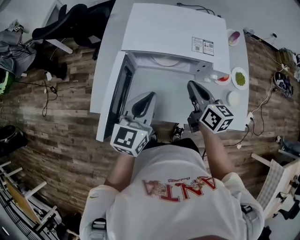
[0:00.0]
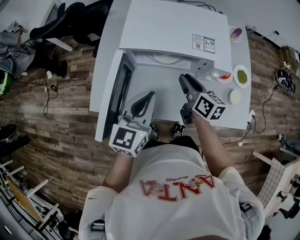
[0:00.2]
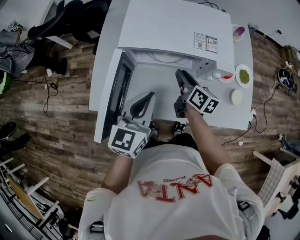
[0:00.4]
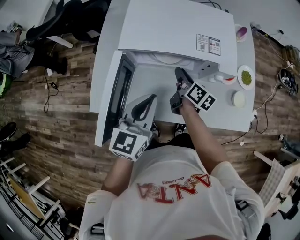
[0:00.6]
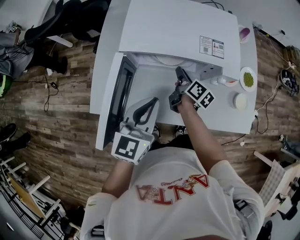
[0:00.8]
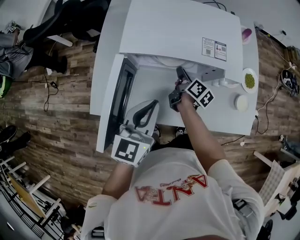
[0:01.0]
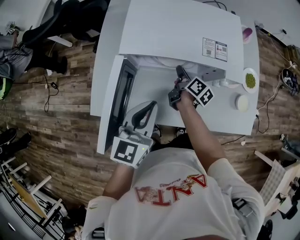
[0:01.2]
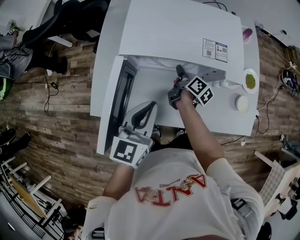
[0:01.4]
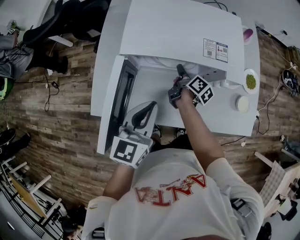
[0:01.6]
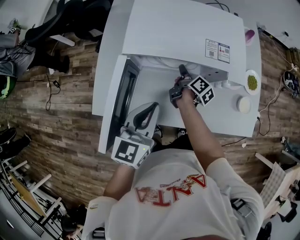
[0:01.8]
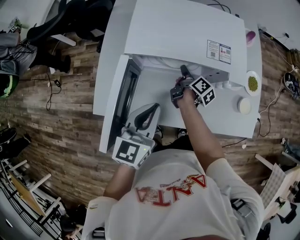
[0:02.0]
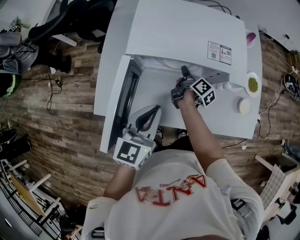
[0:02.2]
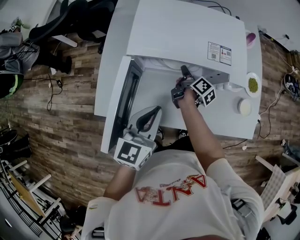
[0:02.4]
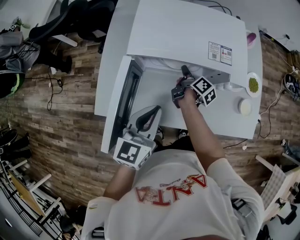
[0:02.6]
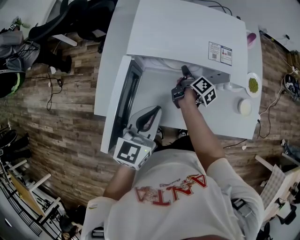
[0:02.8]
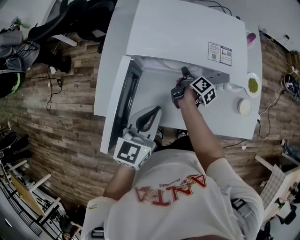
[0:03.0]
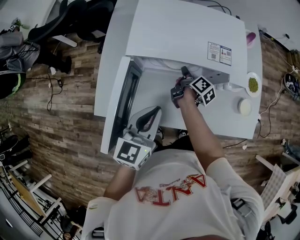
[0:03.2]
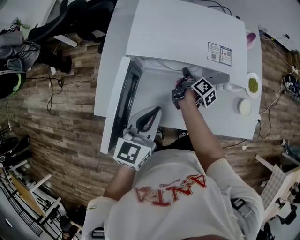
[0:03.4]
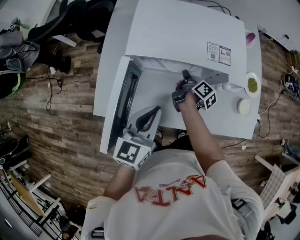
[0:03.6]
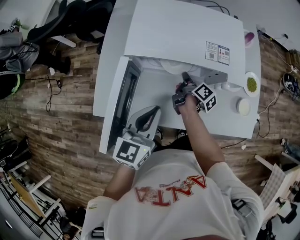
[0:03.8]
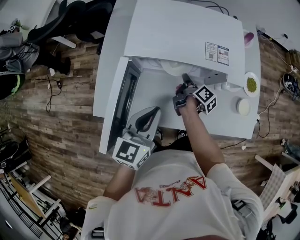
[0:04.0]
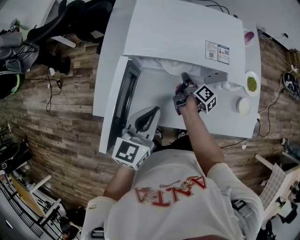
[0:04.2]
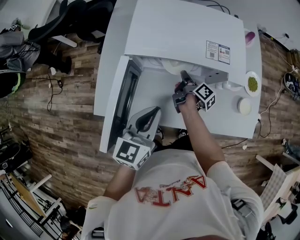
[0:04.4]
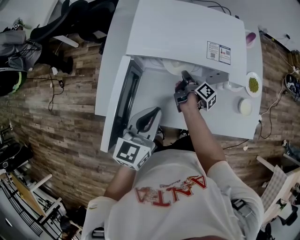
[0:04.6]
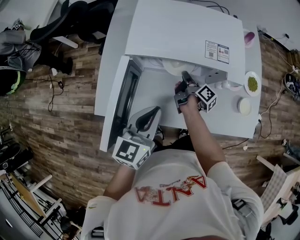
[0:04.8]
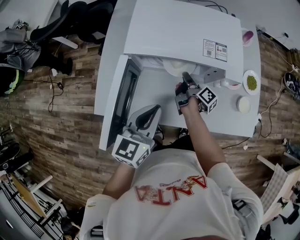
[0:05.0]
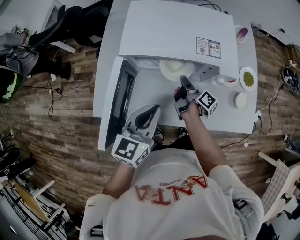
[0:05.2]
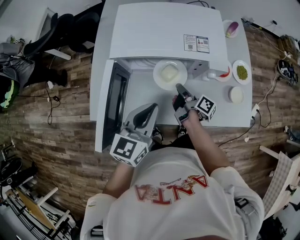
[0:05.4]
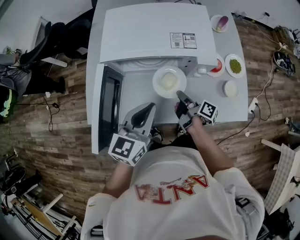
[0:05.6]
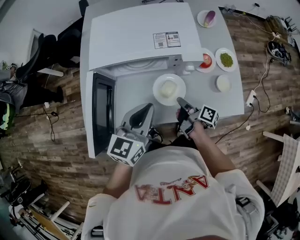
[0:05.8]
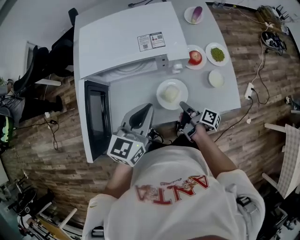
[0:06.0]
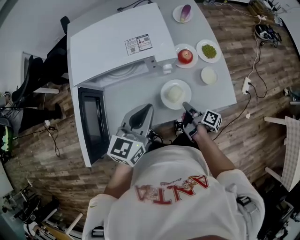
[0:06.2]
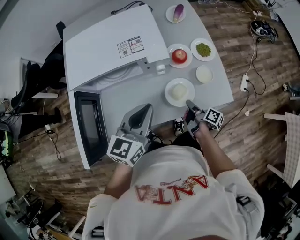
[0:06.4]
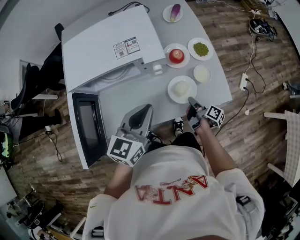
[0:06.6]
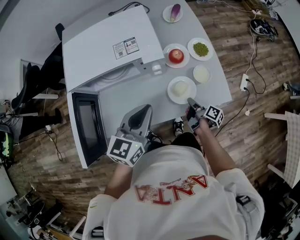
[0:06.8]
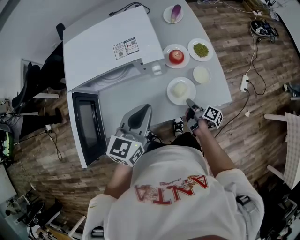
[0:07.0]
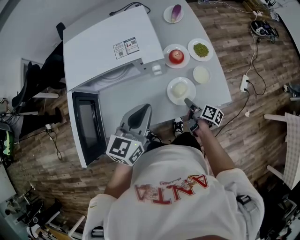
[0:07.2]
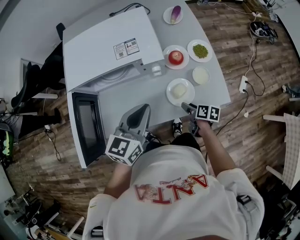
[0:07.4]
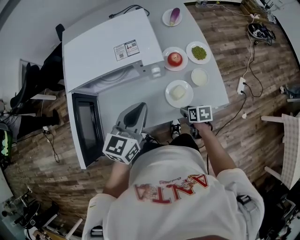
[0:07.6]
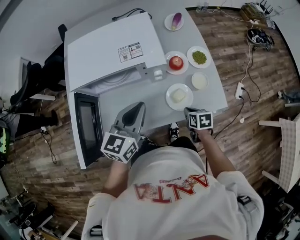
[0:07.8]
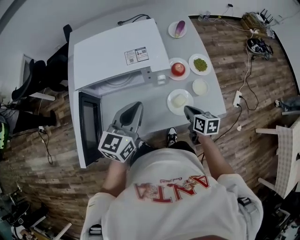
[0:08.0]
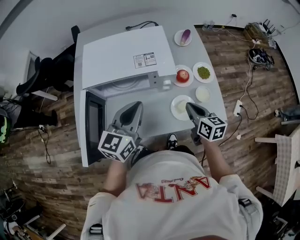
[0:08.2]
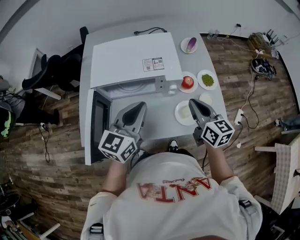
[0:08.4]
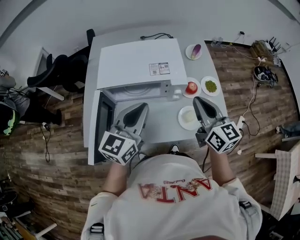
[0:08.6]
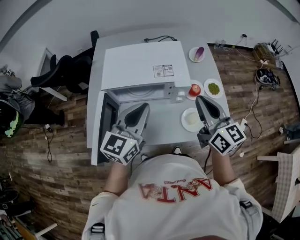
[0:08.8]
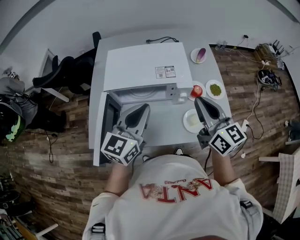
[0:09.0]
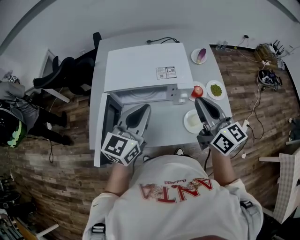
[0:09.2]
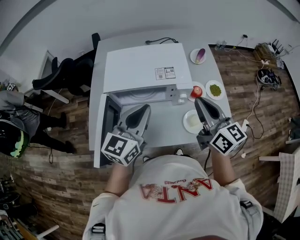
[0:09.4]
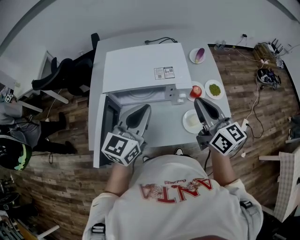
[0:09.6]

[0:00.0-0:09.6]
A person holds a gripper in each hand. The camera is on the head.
0:00.0 to 0:01.6: The right gripper heads downward and forward, covering approximately 20 cm, twists about 40 degrees clockwise, seen from behind, and opens its fingers.
0:01.6 to 0:04.8: The grippers stay close to where they were, moving slightly.
0:04.8 to 0:06.4: The left gripper heads to the right, covering some 20 cm, and rotates some 20 degrees, while the right gripper travels to the right and backward by about 30 cm.
0:06.4 to 0:08.0: The right gripper moves upward, some 10 cm, rolls counterclockwise, seen from behind, by some 50 degrees, and opens, then closes again.
0:08.0 to 0:09.6: The right gripper shifts roughly 30 cm upward, and angles its fingers upward, by about 40 degrees, while the left gripper is displaced upward and to the left by roughly 10 cm.

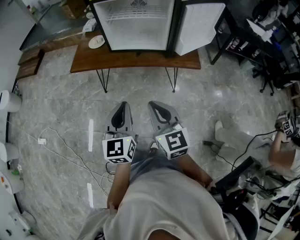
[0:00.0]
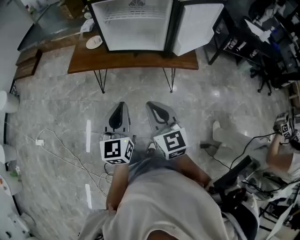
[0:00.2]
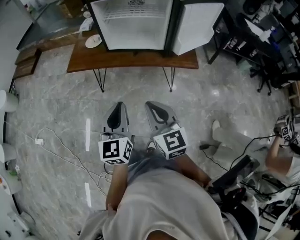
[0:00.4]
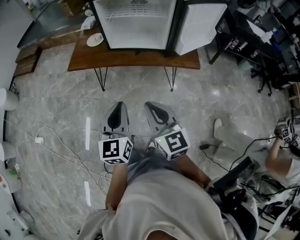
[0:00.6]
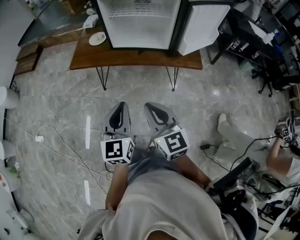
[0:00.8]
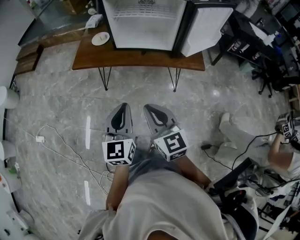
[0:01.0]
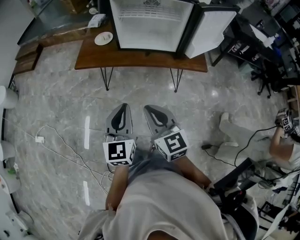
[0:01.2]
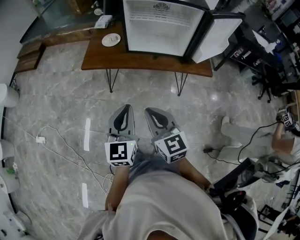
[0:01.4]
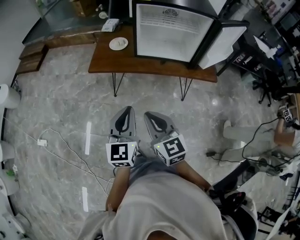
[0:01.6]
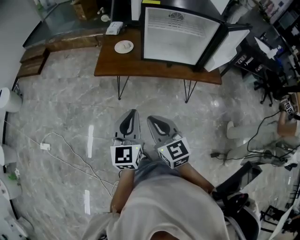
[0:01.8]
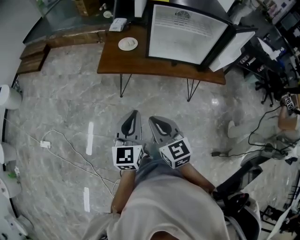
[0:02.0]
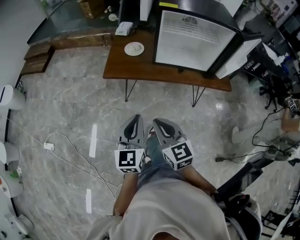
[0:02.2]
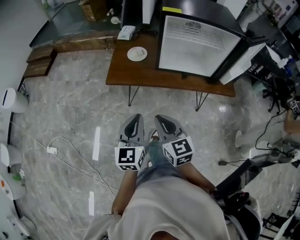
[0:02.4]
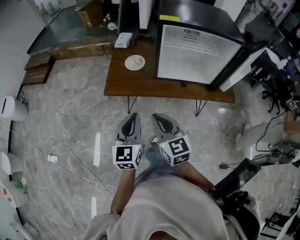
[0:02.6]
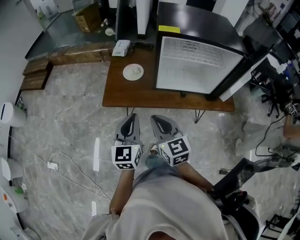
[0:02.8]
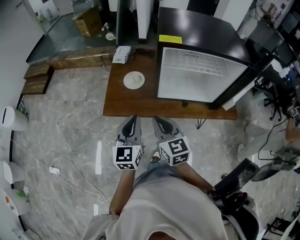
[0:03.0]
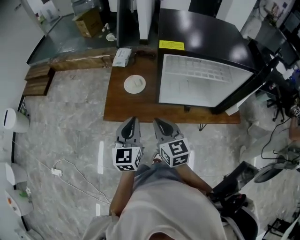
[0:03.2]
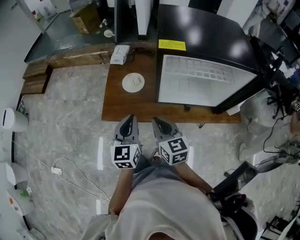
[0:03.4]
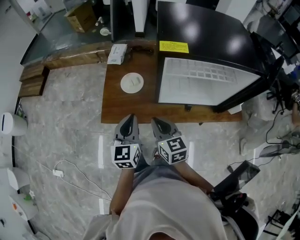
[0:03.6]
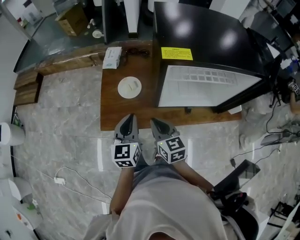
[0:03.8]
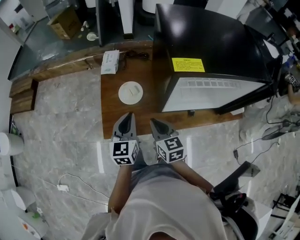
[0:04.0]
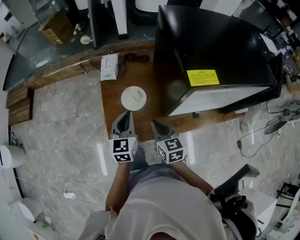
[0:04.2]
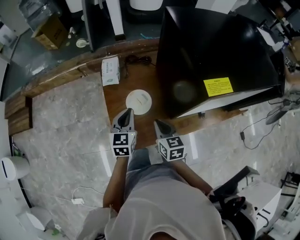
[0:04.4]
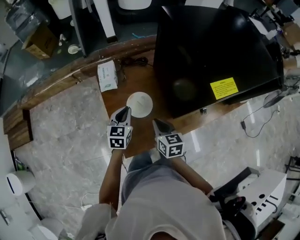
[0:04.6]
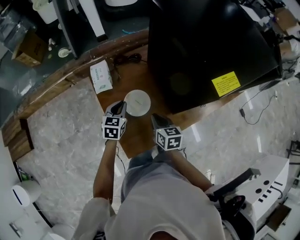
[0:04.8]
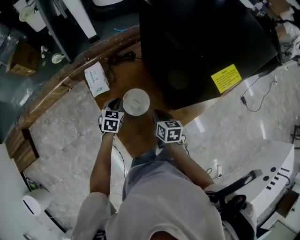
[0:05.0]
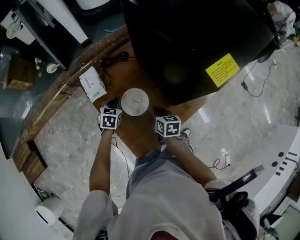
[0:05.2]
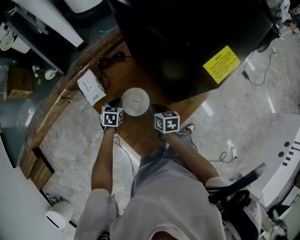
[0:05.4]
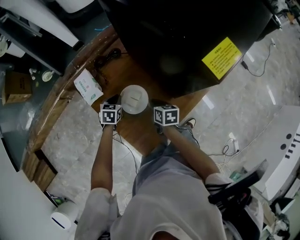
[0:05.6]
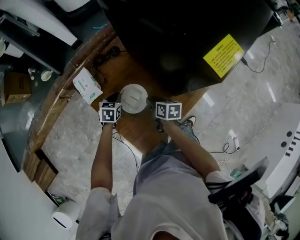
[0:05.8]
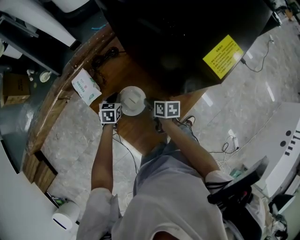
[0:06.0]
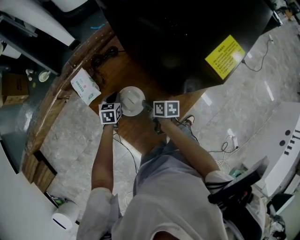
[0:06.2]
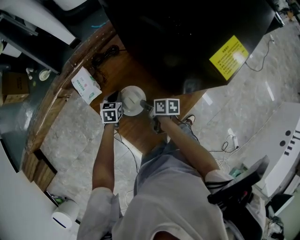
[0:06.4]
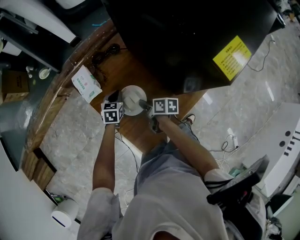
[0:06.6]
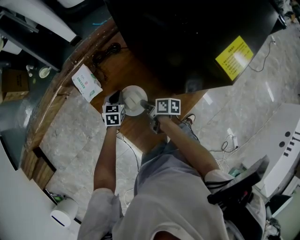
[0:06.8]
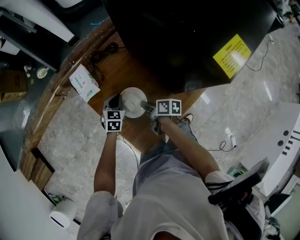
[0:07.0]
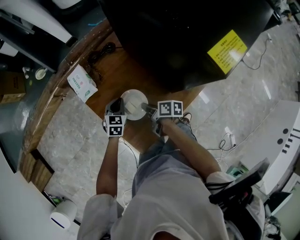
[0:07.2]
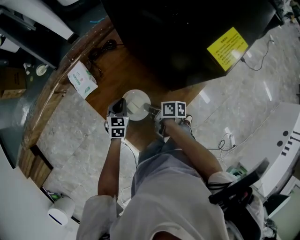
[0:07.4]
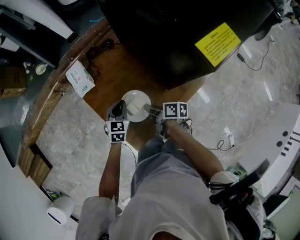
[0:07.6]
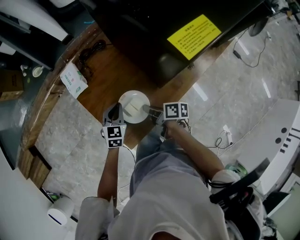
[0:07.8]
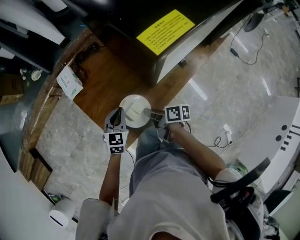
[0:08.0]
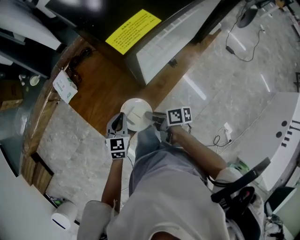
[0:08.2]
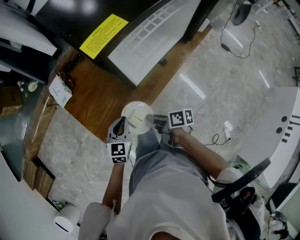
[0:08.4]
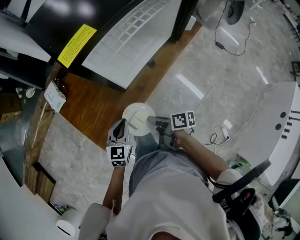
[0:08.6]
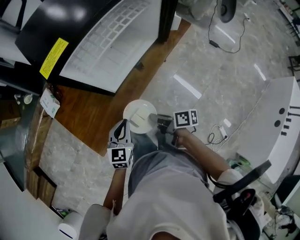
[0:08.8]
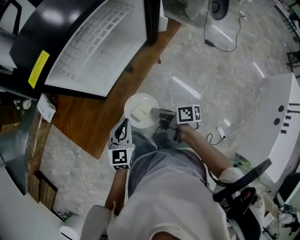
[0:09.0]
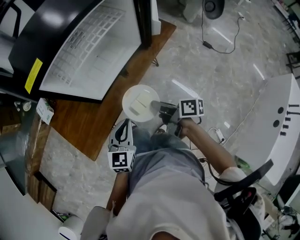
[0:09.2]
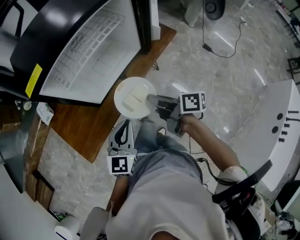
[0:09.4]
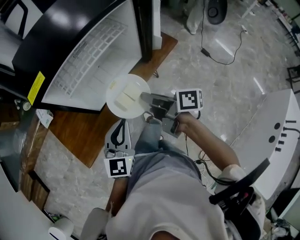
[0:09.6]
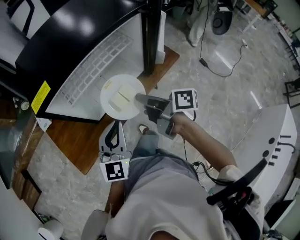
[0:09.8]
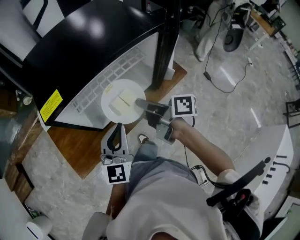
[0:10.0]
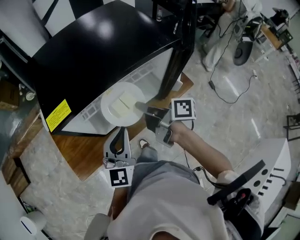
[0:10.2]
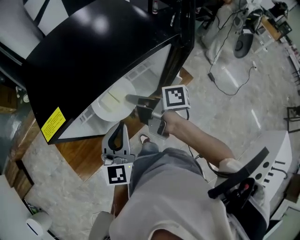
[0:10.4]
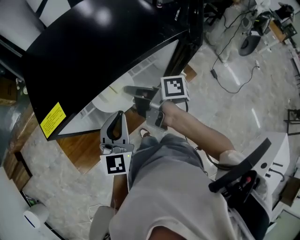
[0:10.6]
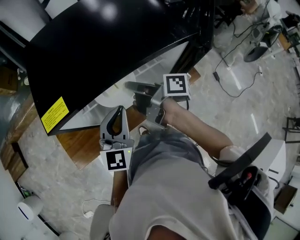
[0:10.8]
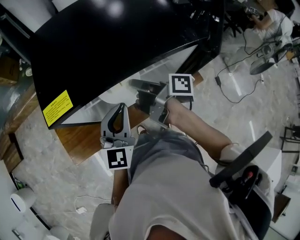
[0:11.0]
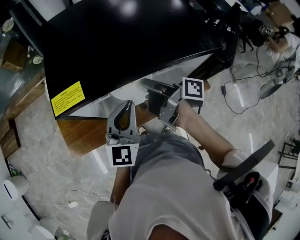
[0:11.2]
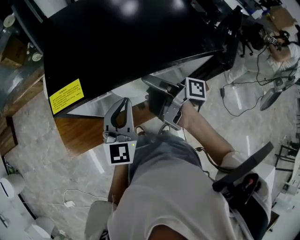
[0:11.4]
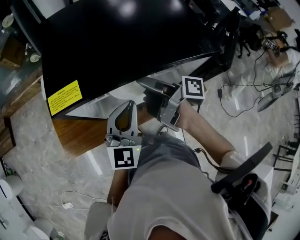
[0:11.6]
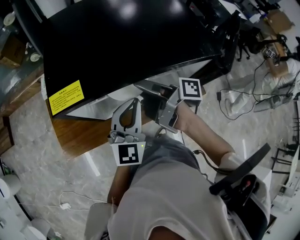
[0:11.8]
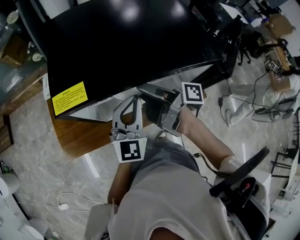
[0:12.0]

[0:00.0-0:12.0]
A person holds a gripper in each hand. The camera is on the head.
0:00.0 to 0:01.6: Both grippers travel together to the left, roughly 30 cm.
0:01.6 to 0:03.0: The pair of grippers is taken forward, about 40 cm.
0:03.0 to 0:04.4: The pair of grippers is taken forward, approximately 50 cm. The left gripper turns by some 30 degrees. Meanwhile the right gripper swivels roughly 30 degrees.
0:04.4 to 0:06.0: Both grippers move downward and forward, roughly 30 cm. The right gripper twists roughly 50 degrees clockwise, seen from behind, and opens, while the left gripper swivels roughly 40 degrees.
0:06.0 to 0:07.6: The left gripper heads backward, covering some 10 cm, while the right gripper shifts approximately 5 cm backward, and rotates about 20 degrees.
0:07.6 to 0:09.0: Both grippers are carried to the right and backward, approximately 50 cm.
0:09.0 to 0:10.4: Both grippers travel together forward, upward and to the right, approximately 40 cm. The right gripper swivels roughly 20 degrees, while the left gripper swivels some 30 degrees.
0:10.4 to 0:12.0: The left gripper travels forward by approximately 15 cm; the right gripper travels forward and to the left by approximately 10 cm, changes its angle by approximately 20 degrees, and opens.

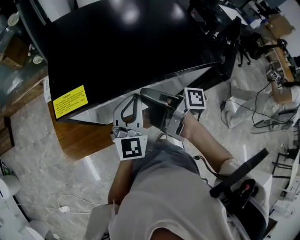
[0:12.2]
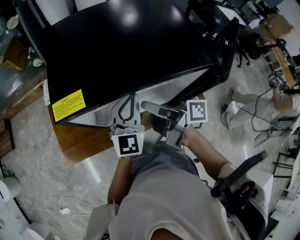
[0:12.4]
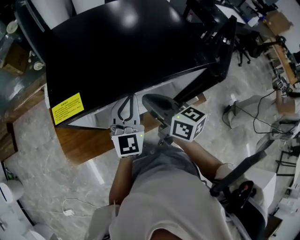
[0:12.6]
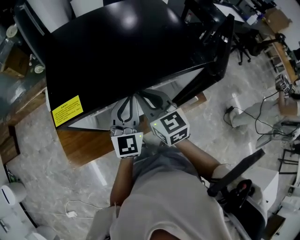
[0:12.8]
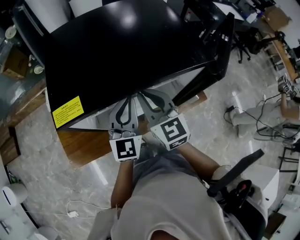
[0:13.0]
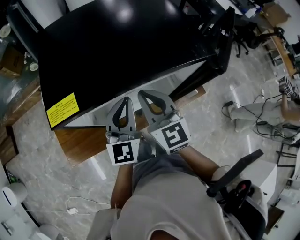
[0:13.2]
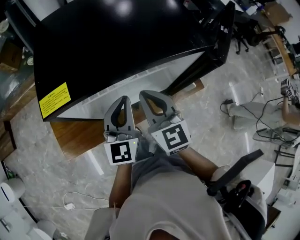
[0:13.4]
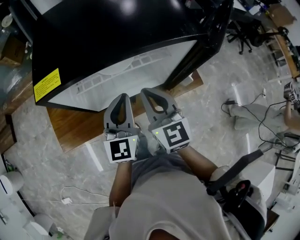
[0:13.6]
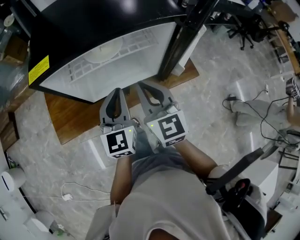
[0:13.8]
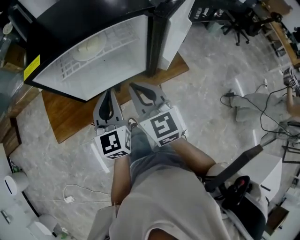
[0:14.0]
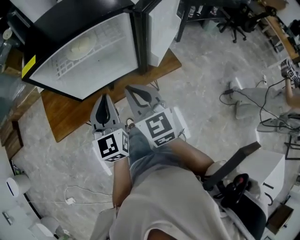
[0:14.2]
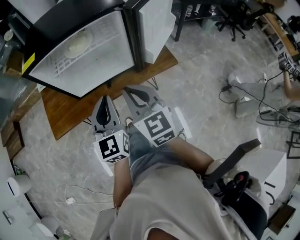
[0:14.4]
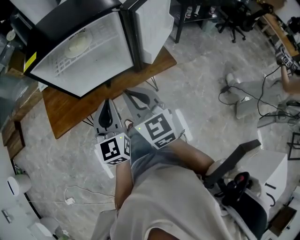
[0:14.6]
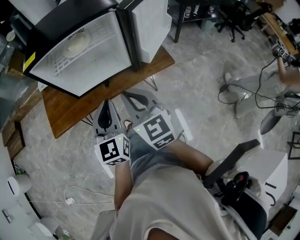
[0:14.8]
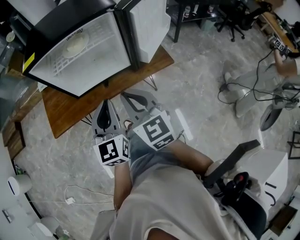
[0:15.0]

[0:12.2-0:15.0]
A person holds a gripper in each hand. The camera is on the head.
0:12.2 to 0:13.6: The two grippers go about 10 cm backward. The right gripper rolls counterclockwise, seen from behind, by some 90 degrees, and closes.
0:13.6 to 0:15.0: The grippers both shift backward and to the right by approximately 40 cm.
